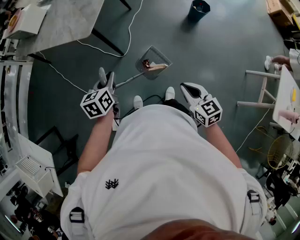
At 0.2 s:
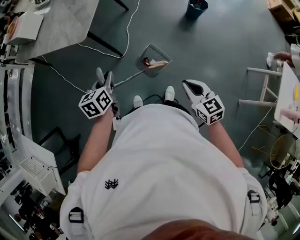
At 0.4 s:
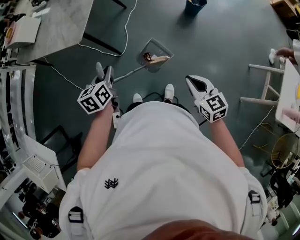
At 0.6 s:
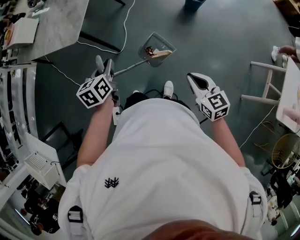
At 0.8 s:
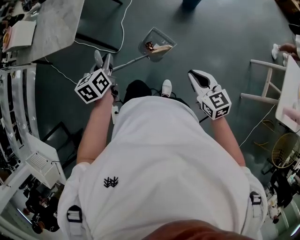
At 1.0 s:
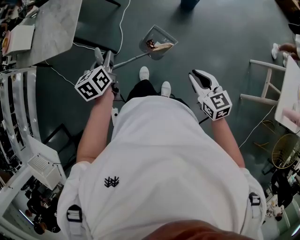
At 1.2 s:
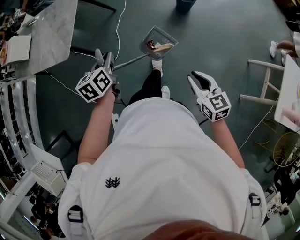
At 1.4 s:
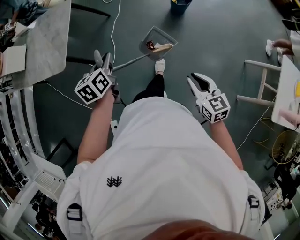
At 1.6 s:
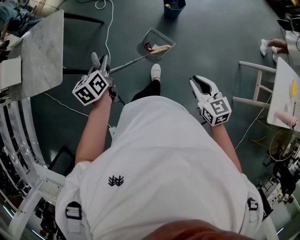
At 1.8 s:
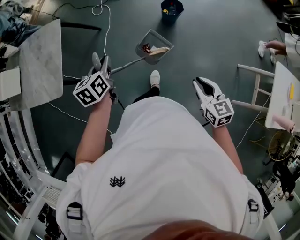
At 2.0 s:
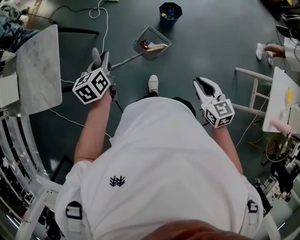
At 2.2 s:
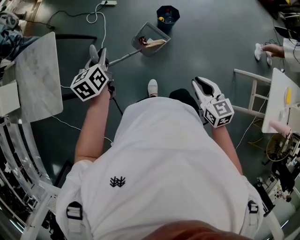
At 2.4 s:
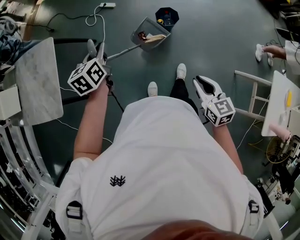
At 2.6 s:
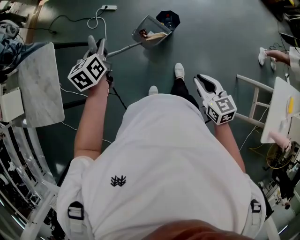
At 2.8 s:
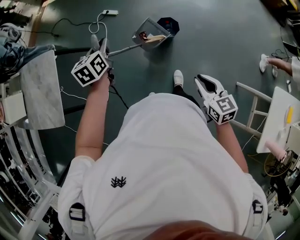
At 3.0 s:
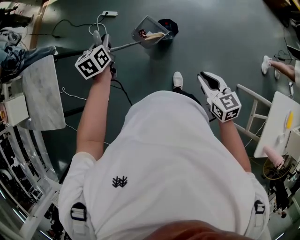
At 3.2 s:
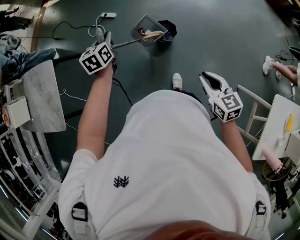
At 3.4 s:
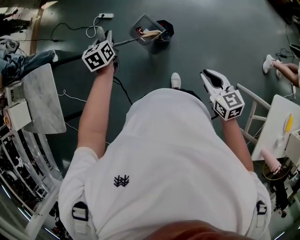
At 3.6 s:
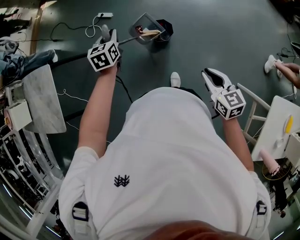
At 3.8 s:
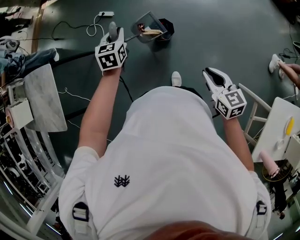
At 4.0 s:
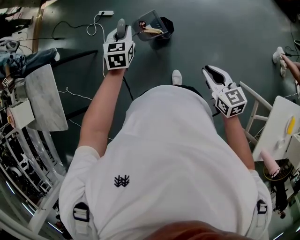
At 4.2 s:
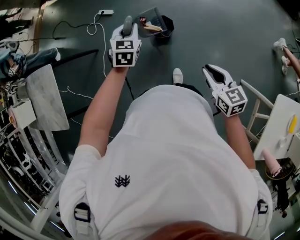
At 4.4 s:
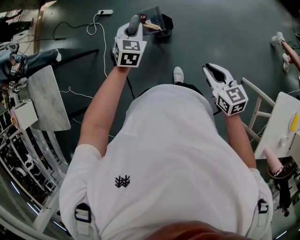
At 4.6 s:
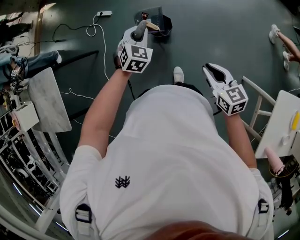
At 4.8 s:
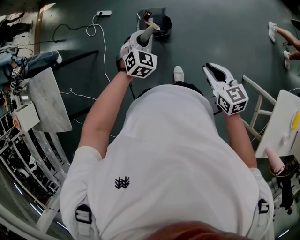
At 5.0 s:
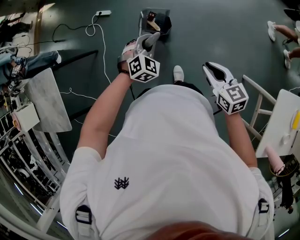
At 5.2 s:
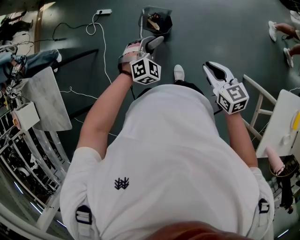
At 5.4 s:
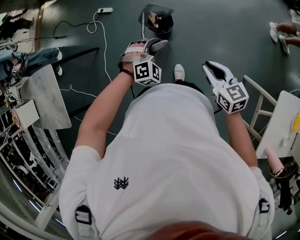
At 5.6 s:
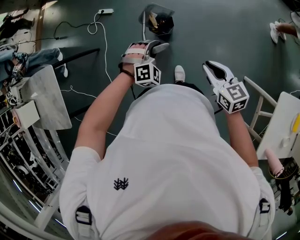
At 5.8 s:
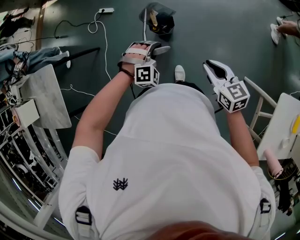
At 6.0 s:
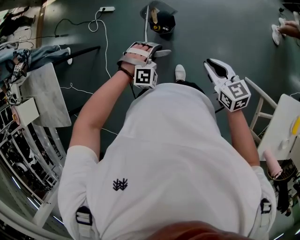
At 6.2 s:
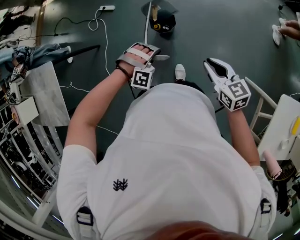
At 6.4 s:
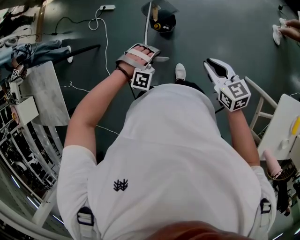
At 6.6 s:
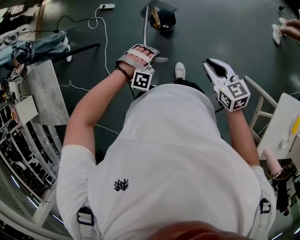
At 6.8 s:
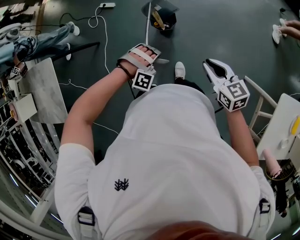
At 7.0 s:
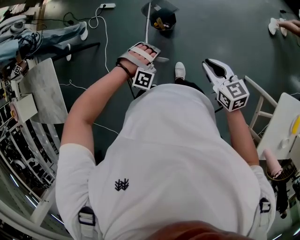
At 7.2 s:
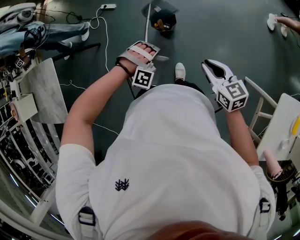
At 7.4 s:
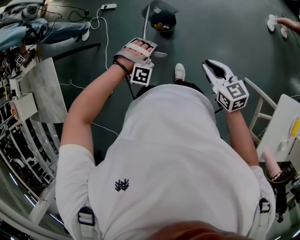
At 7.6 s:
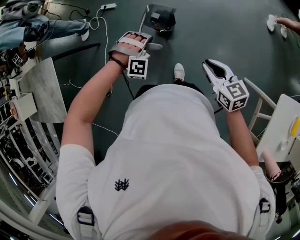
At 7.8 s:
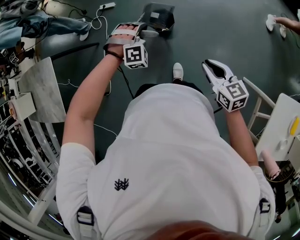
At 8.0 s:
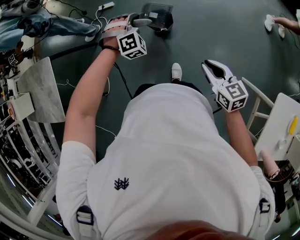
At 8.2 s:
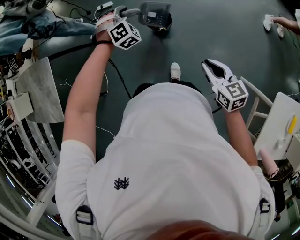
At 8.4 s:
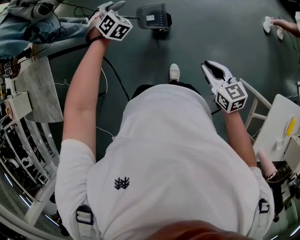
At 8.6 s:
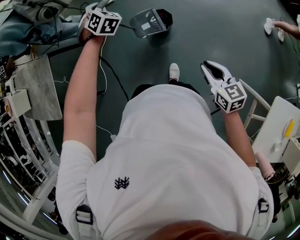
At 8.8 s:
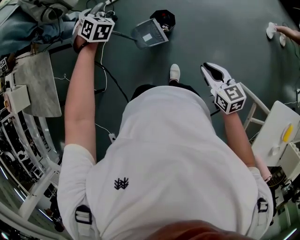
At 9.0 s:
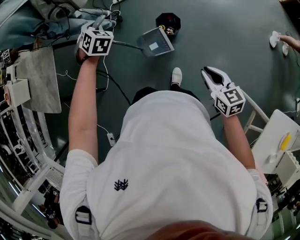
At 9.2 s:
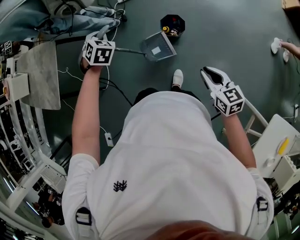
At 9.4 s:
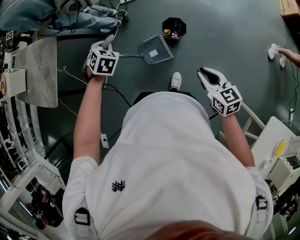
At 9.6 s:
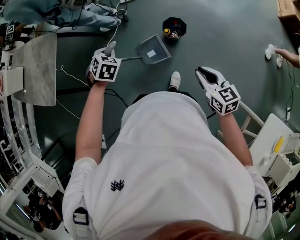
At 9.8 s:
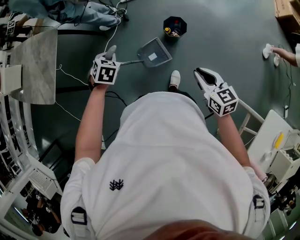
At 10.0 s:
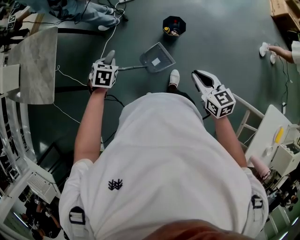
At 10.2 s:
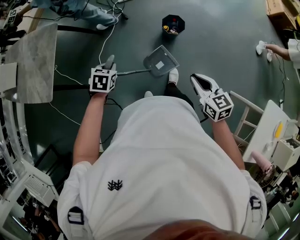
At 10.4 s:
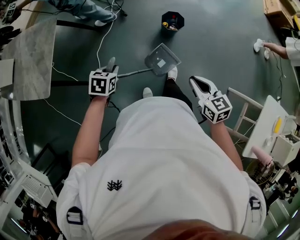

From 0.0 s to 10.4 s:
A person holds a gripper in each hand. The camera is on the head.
From 0.0 s to 1.4 s: The left gripper goes about 35 cm to the right and forward, while the right gripper heads to the right, covering roughly 30 cm.
From 1.4 s to 3.0 s: The pair of grippers is taken forward and to the right, some 50 cm.
From 3.0 s to 4.4 s: The right gripper shifts some 10 cm to the right, while the left gripper moves to the right, roughly 25 cm, and rotates around the line of its fingers by roughly 40 degrees, clockwise from behind.
From 4.4 s to 6.0 s: The left gripper moves backward, downward and to the right, about 15 cm, and rotates around the line of its fingers by some 70 degrees, clockwise from behind.
From 6.0 s to 7.4 s: The left gripper turns by some 20 degrees.
From 7.4 s to 9.0 s: The left gripper changes place by roughly 30 cm, and rotates around the line of its fingers by approximately 80 degrees, counterclockwise from behind.
From 9.0 s to 10.4 s: The right gripper moves about 25 cm, while the left gripper shifts by roughly 40 cm, and changes its angle by about 50 degrees.

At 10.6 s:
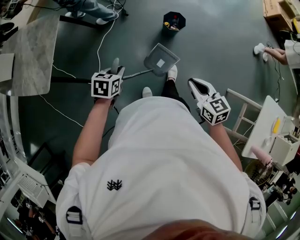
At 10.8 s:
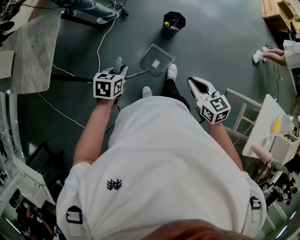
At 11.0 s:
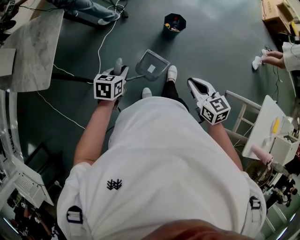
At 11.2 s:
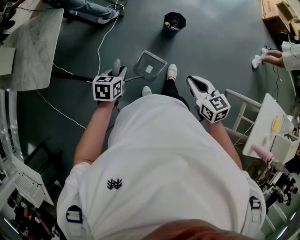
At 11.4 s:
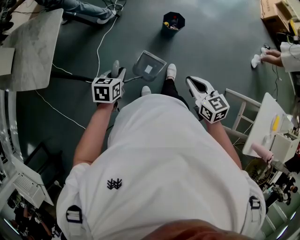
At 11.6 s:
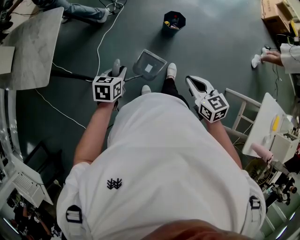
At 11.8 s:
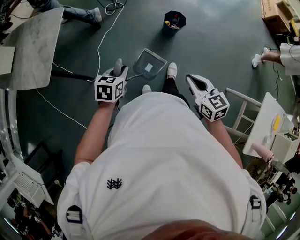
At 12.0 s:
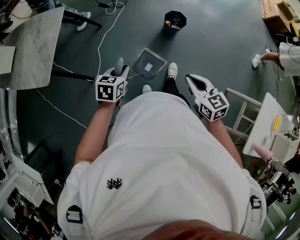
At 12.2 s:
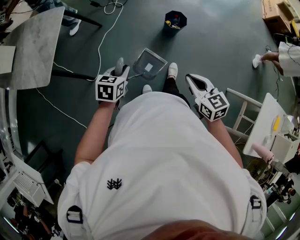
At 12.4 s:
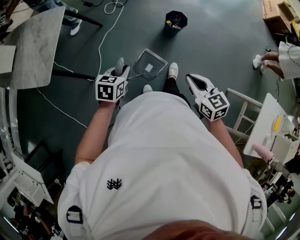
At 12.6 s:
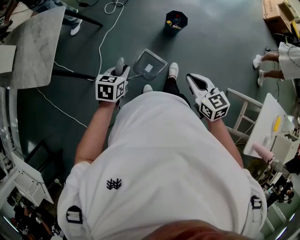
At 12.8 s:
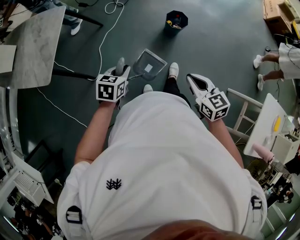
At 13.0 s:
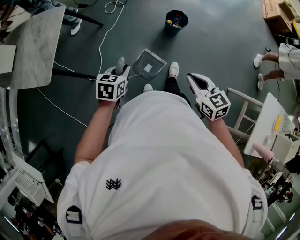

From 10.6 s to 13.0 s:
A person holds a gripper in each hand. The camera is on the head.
From 10.6 s to 11.8 s: The grippers make only small movements.
From 11.8 s to 13.0 s: Both grippers stay put.

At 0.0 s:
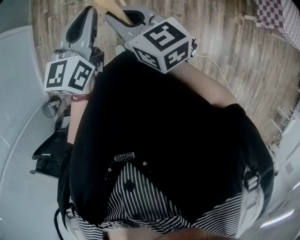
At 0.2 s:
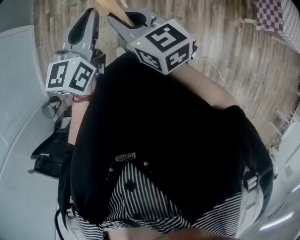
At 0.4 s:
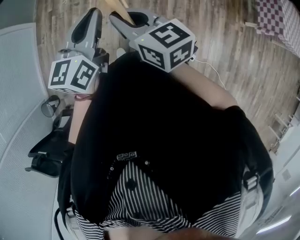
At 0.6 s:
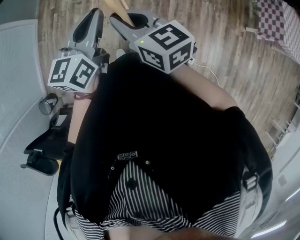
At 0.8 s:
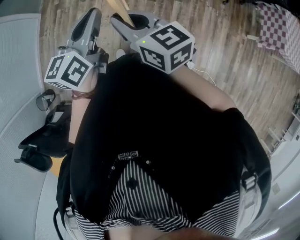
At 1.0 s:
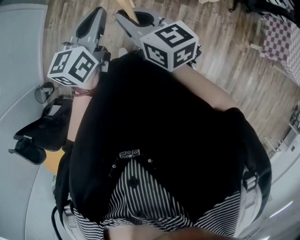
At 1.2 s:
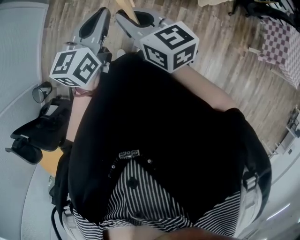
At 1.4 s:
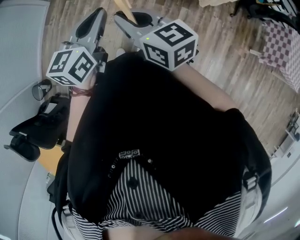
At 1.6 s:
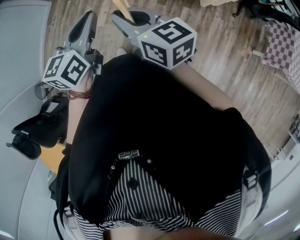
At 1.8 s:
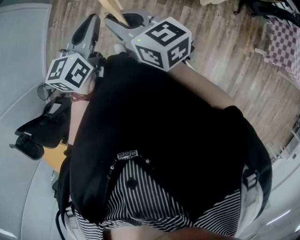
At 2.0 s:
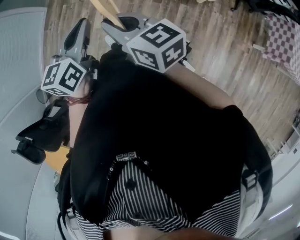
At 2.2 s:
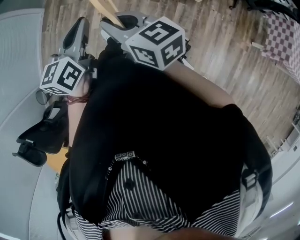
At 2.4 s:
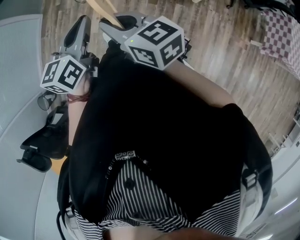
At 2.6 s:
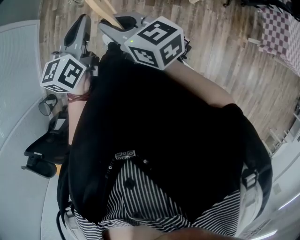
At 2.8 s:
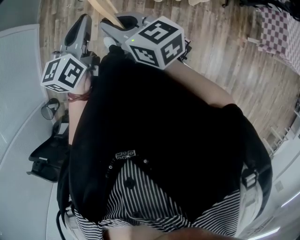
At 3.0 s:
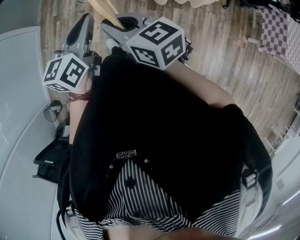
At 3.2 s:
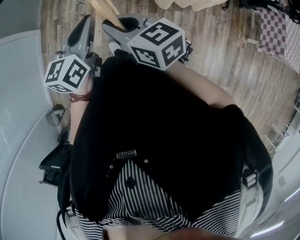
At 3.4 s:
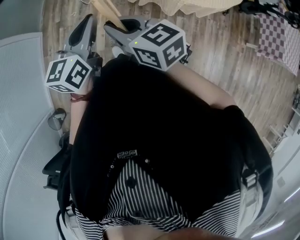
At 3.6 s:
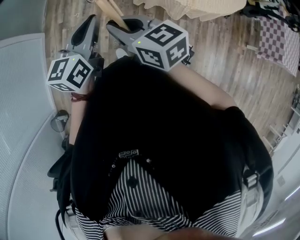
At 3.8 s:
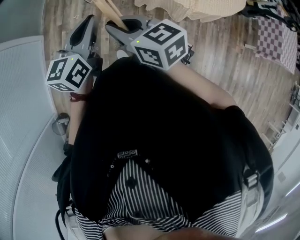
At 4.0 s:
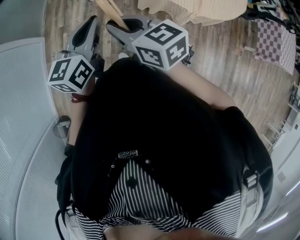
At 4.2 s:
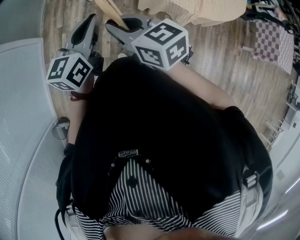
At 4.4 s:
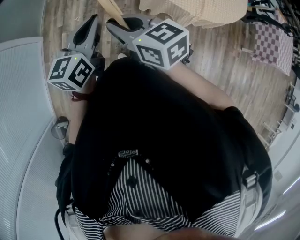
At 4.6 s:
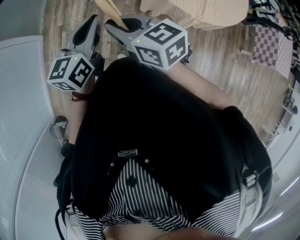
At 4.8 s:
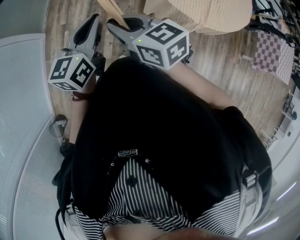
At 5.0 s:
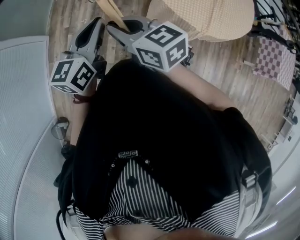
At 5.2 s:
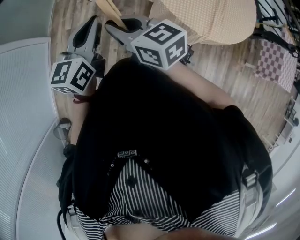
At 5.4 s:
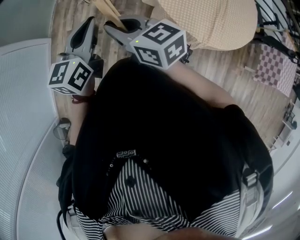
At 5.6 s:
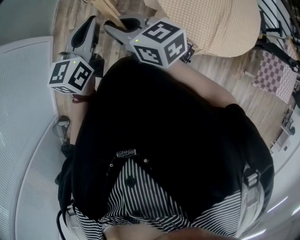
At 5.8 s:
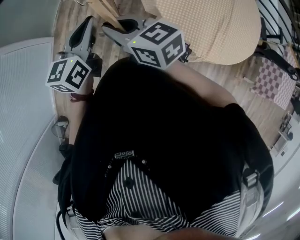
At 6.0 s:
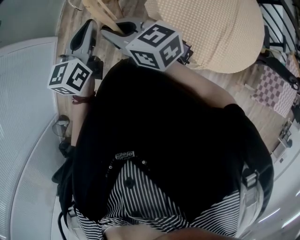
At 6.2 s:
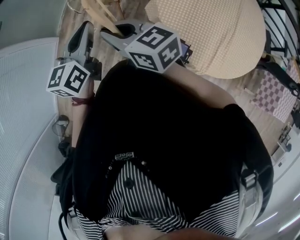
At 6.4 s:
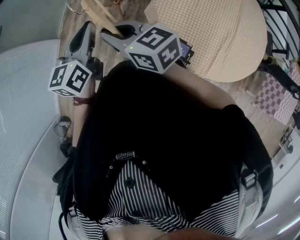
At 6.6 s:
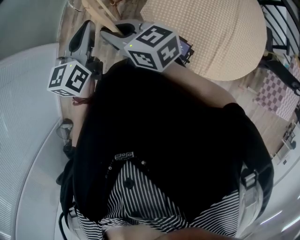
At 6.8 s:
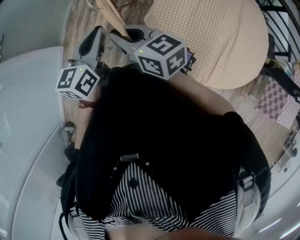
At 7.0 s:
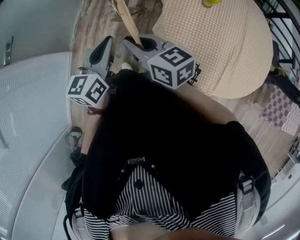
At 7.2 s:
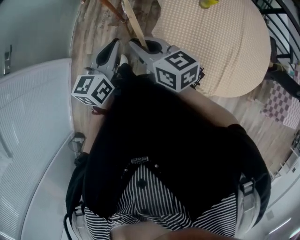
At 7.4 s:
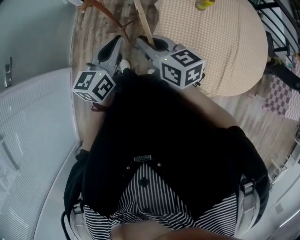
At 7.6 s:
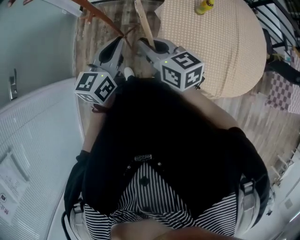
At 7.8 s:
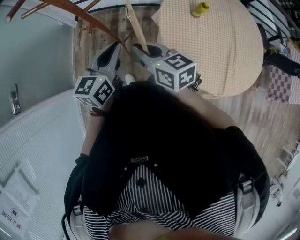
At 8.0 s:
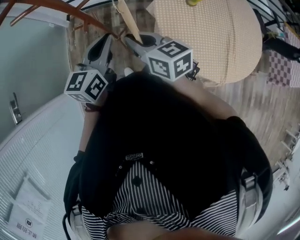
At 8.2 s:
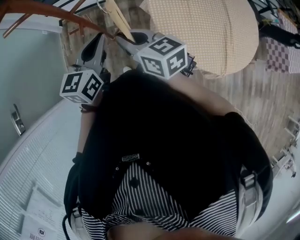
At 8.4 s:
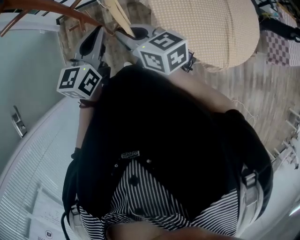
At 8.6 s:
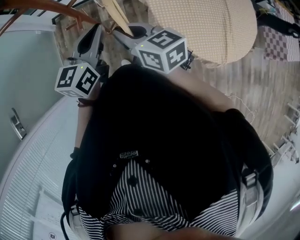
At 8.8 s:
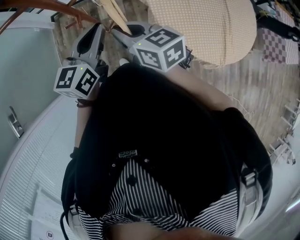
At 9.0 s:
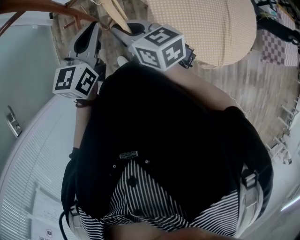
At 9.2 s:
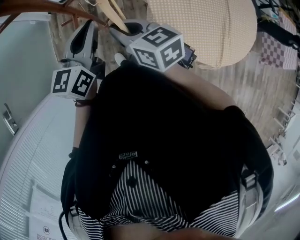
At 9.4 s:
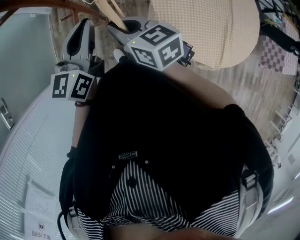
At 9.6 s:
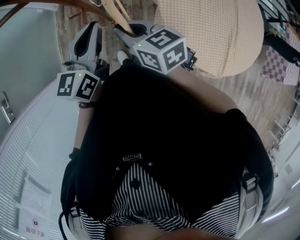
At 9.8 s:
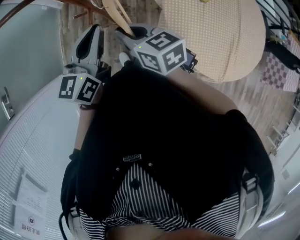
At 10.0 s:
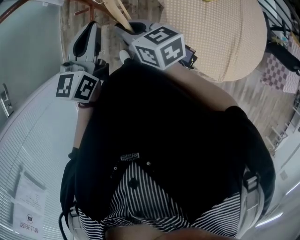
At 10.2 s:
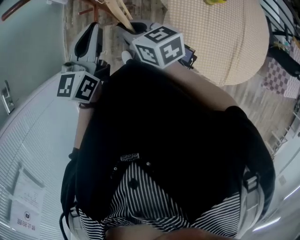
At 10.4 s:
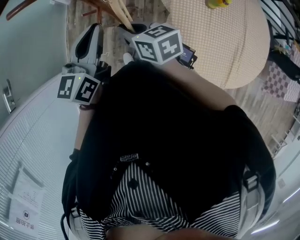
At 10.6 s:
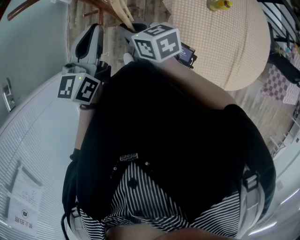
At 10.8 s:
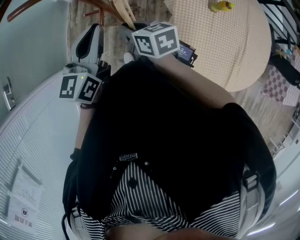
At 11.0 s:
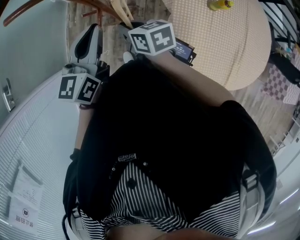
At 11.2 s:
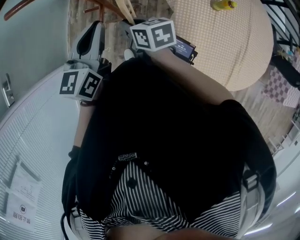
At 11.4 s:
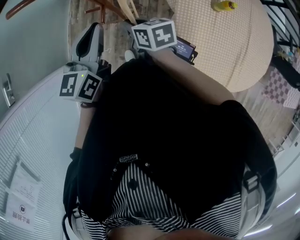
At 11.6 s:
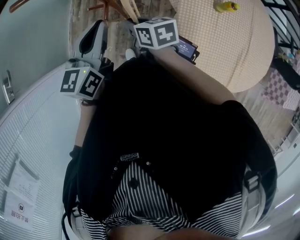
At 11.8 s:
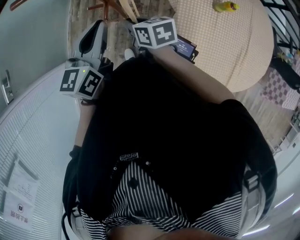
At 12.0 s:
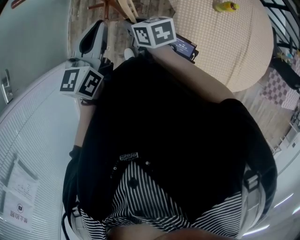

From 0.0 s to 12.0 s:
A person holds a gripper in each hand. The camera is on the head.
From 0.0 s to 1.6 s: The grippers move only a little.
From 1.6 s to 3.0 s: The grippers both shift forward by some 15 cm.
From 3.0 s to 4.4 s: The two grippers go about 35 cm forward and to the left.
From 4.4 s to 6.0 s: Both grippers move forward, some 30 cm.
From 6.0 s to 7.6 s: The left gripper goes roughly 20 cm forward. The right gripper goes some 20 cm forward and to the right, and changes its angle by some 30 degrees.
From 7.6 s to 9.0 s: The left gripper shifts approximately 10 cm forward and to the left. Meanwhile the right gripper heads to the left and forward, covering approximately 10 cm.
From 9.0 s to 10.4 s: The left gripper moves some 5 cm; the right gripper is displaced downward and forward by roughly 5 cm.
From 10.4 s to 12.0 s: The right gripper moves downward, some 5 cm.
